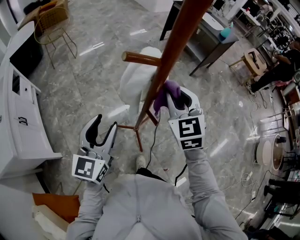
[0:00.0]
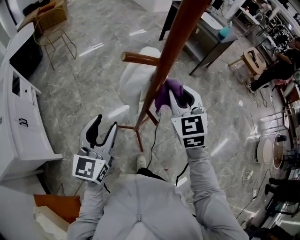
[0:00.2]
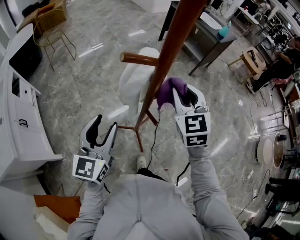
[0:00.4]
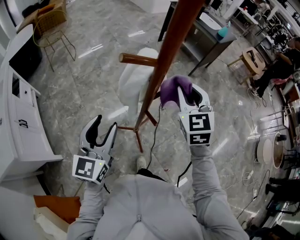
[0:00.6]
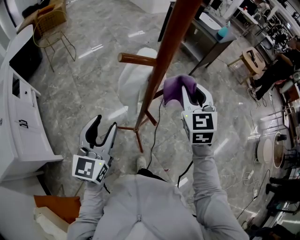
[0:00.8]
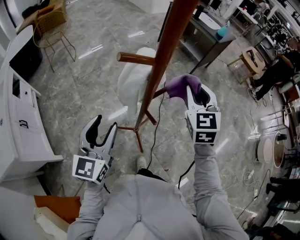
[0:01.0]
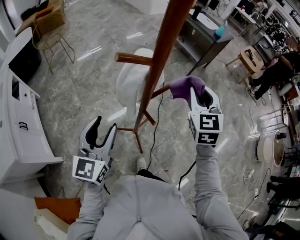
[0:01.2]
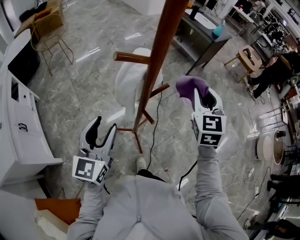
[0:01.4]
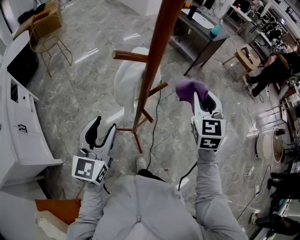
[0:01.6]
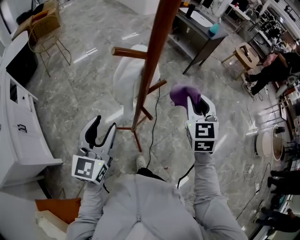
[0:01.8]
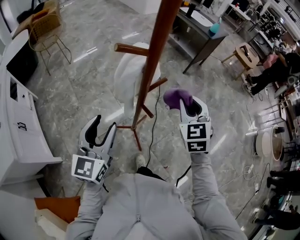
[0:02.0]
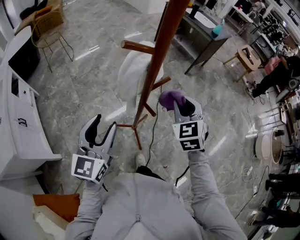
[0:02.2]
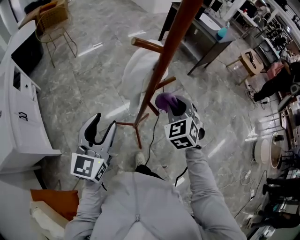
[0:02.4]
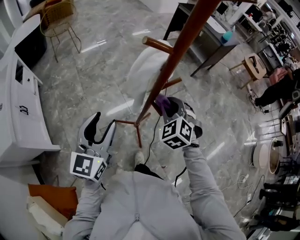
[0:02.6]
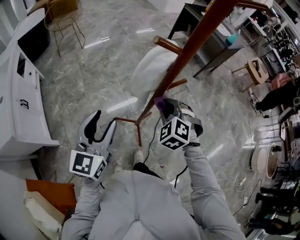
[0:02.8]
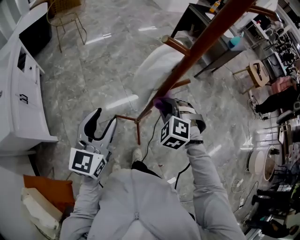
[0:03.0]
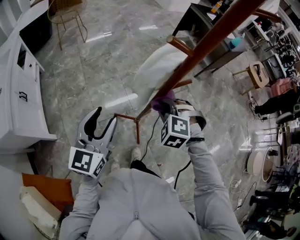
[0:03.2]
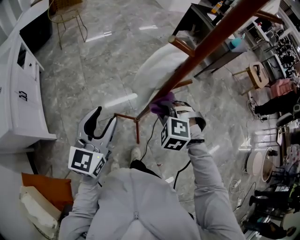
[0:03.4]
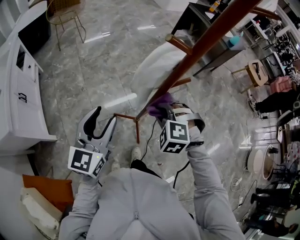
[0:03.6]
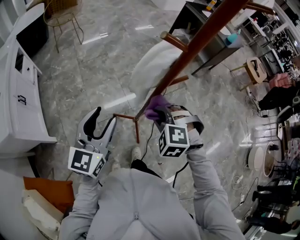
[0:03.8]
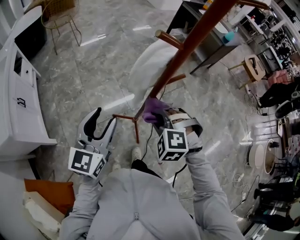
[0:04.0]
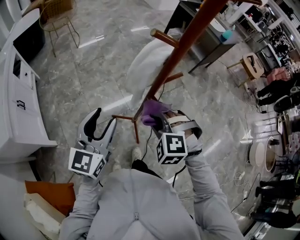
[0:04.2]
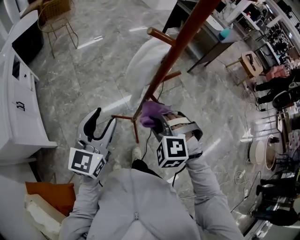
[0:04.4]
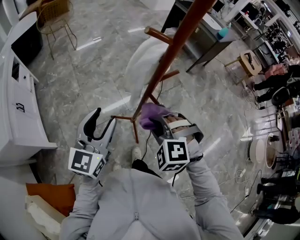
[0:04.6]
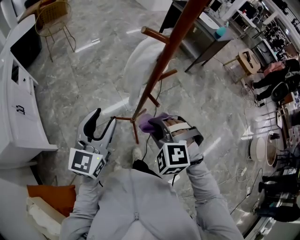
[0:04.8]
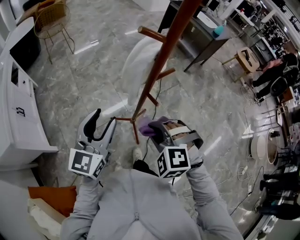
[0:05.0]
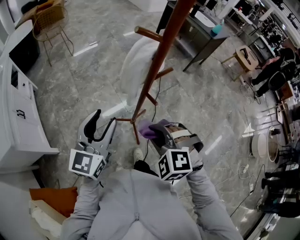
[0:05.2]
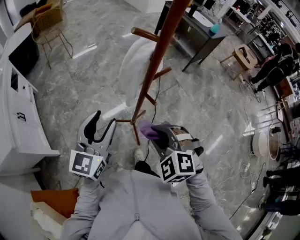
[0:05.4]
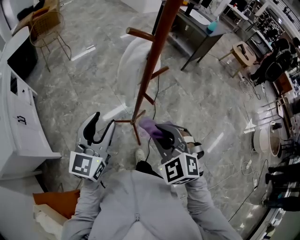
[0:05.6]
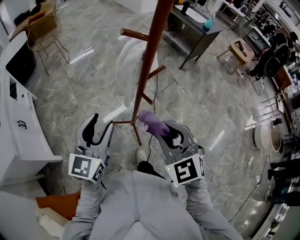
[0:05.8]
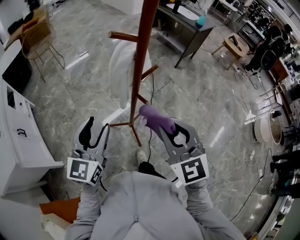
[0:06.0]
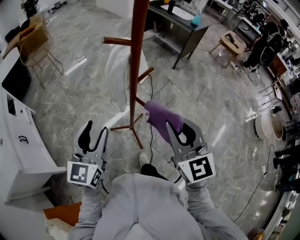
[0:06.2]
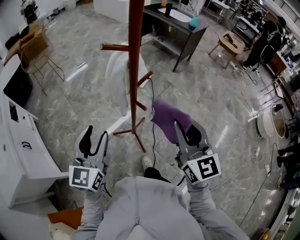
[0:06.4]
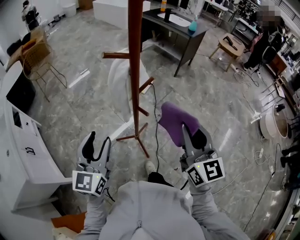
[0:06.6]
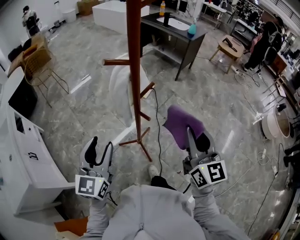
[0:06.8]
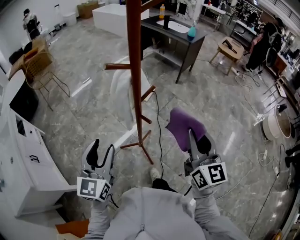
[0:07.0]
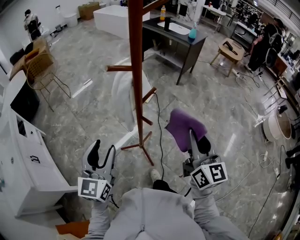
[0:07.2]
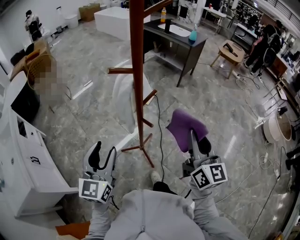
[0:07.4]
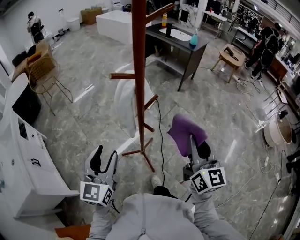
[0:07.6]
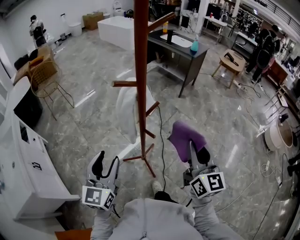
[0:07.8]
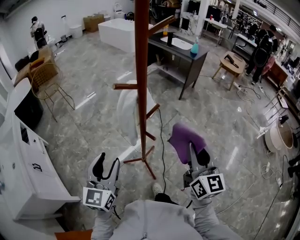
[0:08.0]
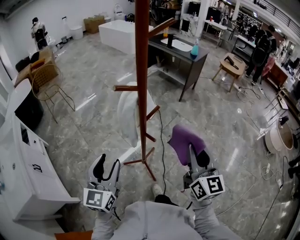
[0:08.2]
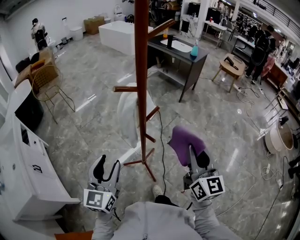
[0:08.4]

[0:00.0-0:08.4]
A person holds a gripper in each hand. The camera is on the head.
0:00.0 to 0:01.4: The right gripper moves to the right, about 10 cm.
0:01.4 to 0:02.8: The right gripper moves downward, to the left and backward, roughly 25 cm, and tips its fingers downward by some 30 degrees, while the left gripper moves some 5 cm.
0:02.8 to 0:04.2: The right gripper is displaced backward by approximately 10 cm, and changes its angle by some 20 degrees.
0:04.2 to 0:05.6: The right gripper goes some 10 cm backward and upward, and swivels approximately 30 degrees.
0:05.6 to 0:07.0: The right gripper moves to the right and upward, some 20 cm, and angles its fingers upward, by some 40 degrees.
0:07.0 to 0:08.4: The grippers make only small movements.

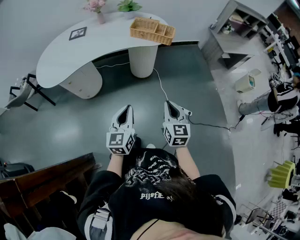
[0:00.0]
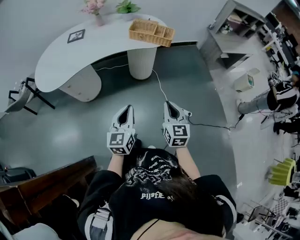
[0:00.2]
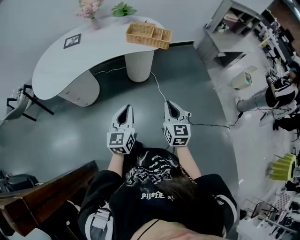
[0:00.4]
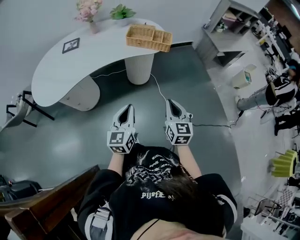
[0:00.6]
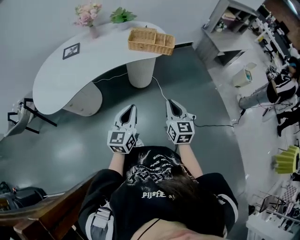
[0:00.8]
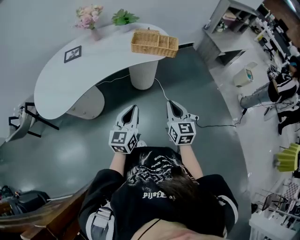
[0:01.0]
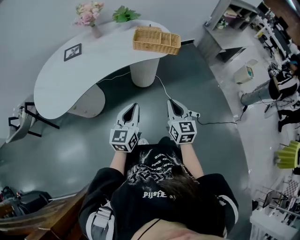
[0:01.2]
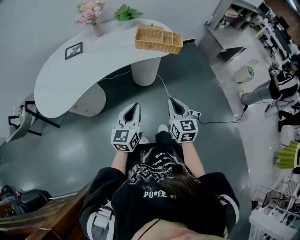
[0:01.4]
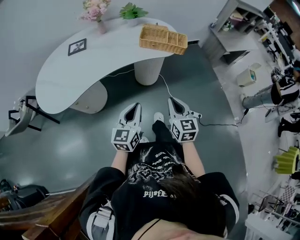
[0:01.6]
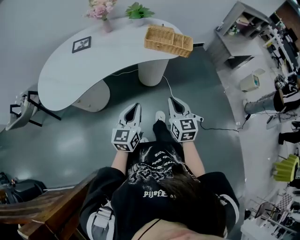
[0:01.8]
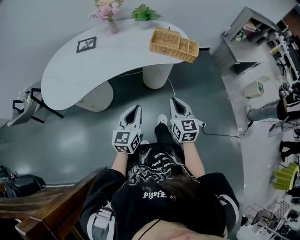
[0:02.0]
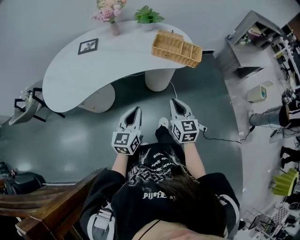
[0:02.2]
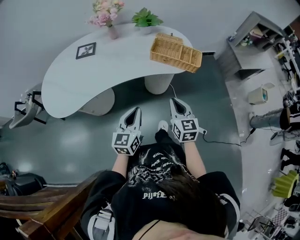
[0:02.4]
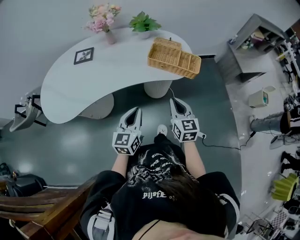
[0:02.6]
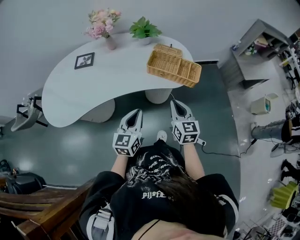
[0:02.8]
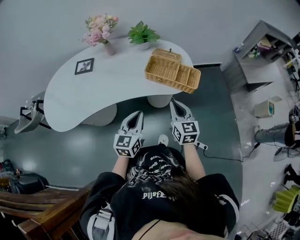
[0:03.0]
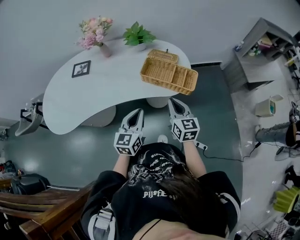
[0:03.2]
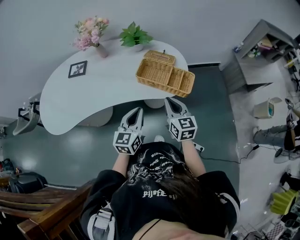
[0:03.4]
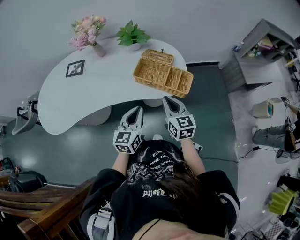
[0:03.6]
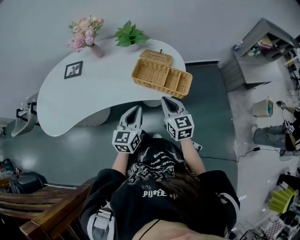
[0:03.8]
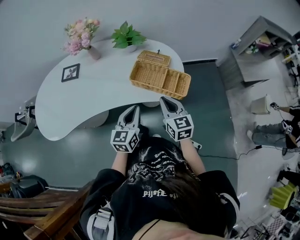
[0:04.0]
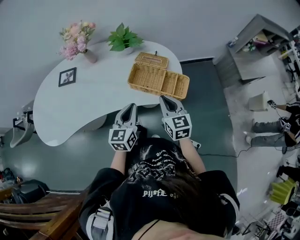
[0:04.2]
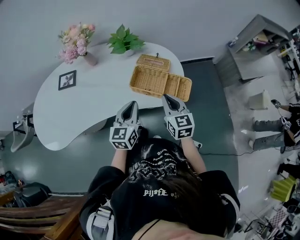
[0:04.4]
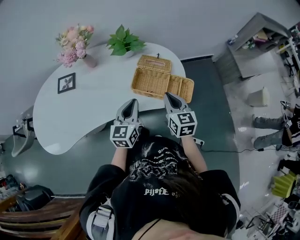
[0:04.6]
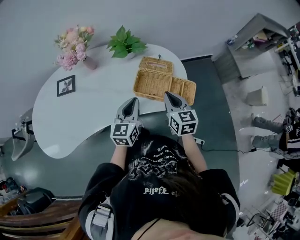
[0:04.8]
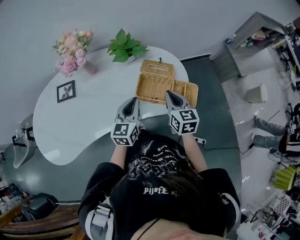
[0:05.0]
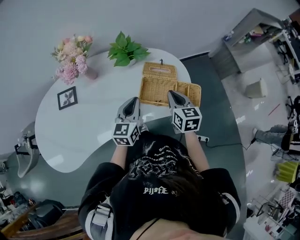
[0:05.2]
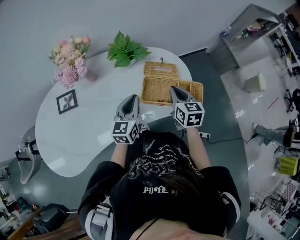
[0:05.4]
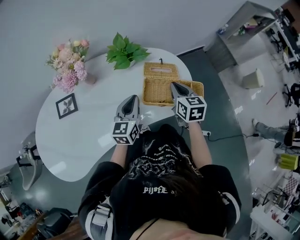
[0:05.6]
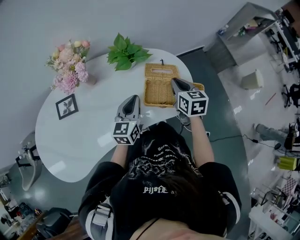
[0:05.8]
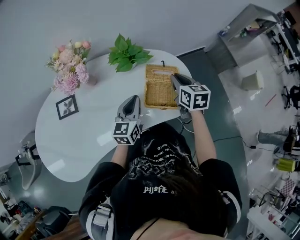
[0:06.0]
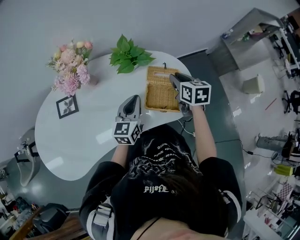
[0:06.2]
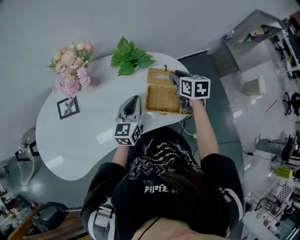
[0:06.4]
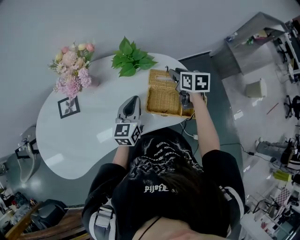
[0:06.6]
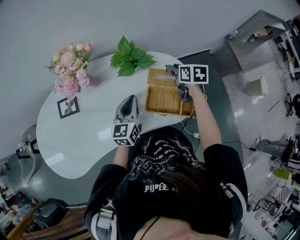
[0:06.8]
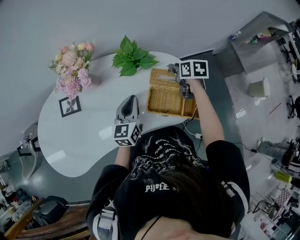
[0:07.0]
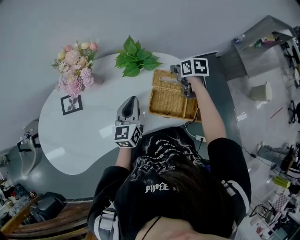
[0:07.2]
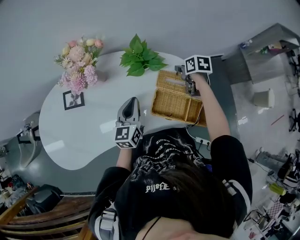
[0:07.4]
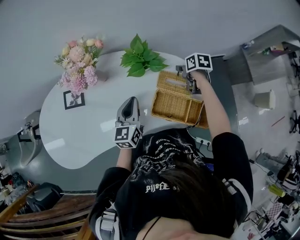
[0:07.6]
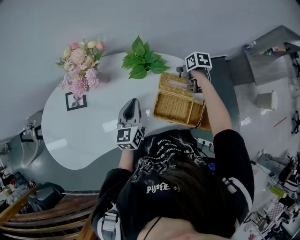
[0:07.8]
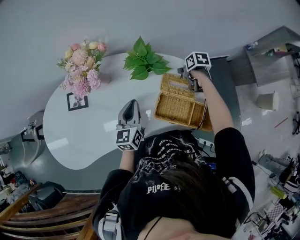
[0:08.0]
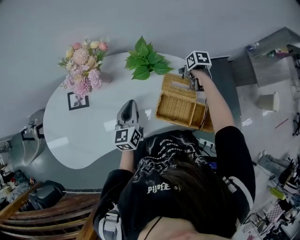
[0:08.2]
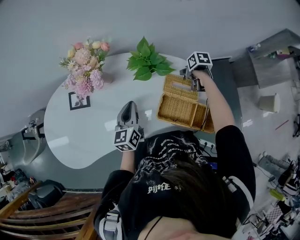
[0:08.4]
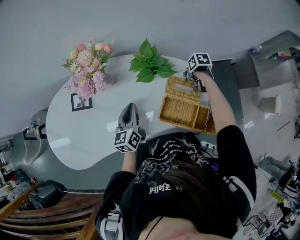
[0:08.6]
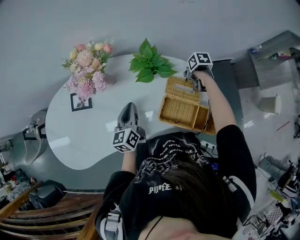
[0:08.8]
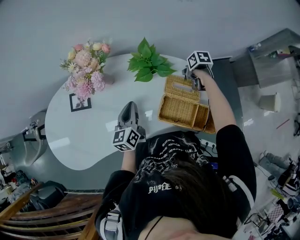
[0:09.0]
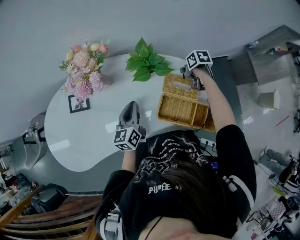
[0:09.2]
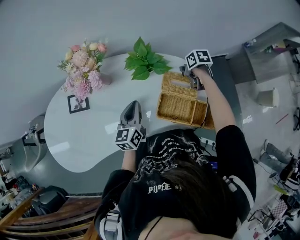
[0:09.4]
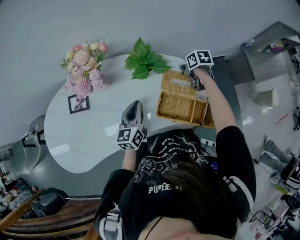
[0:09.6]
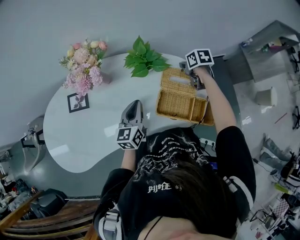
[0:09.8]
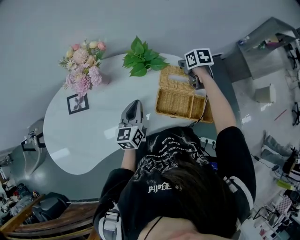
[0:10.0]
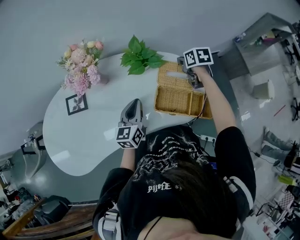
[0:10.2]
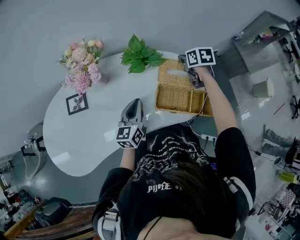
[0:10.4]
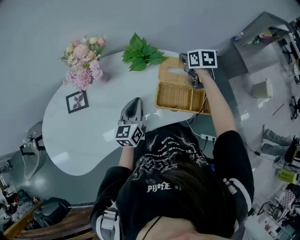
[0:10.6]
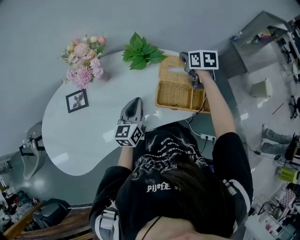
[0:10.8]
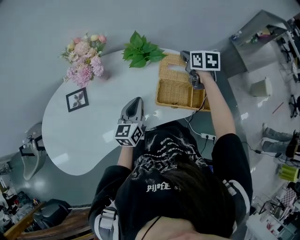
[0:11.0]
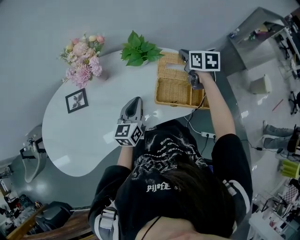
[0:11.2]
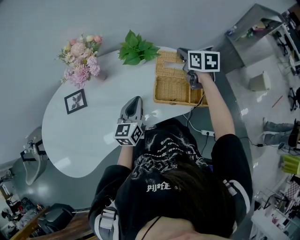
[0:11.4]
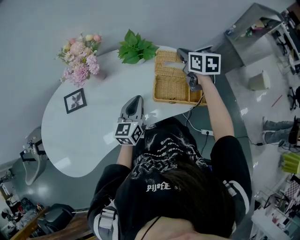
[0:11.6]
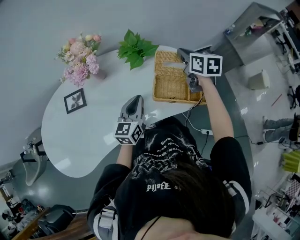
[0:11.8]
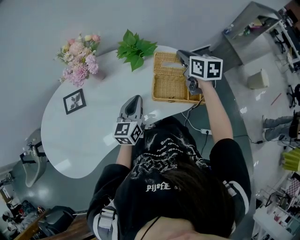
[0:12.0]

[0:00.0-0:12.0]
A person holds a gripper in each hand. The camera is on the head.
0:00.0 to 0:01.6: The right gripper shifts about 20 cm to the left and forward; the left gripper goes some 20 cm forward and to the left.
0:01.6 to 0:03.0: Both grippers move forward, approximately 25 cm.
0:03.0 to 0:04.4: Both grippers travel together forward, roughly 15 cm.
0:04.4 to 0:06.0: The left gripper heads forward and to the left, covering about 15 cm, while the right gripper is displaced forward by roughly 20 cm, and changes its angle by some 20 degrees.
0:06.0 to 0:07.6: The left gripper moves some 5 cm; the right gripper moves forward and downward, roughly 20 cm, and rotates roughly 30 degrees.
0:07.6 to 0:09.0: The right gripper closes its fingers. Meanwhile the left gripper changes place by roughly 5 cm.
0:09.0 to 0:10.4: The right gripper is displaced upward by roughly 10 cm, and swivels about 30 degrees. Meanwhile the left gripper shifts by some 5 cm.
0:10.4 to 0:12.0: The right gripper moves upward and backward, some 15 cm, and rotates about 20 degrees.

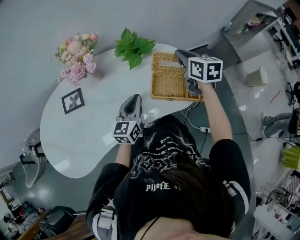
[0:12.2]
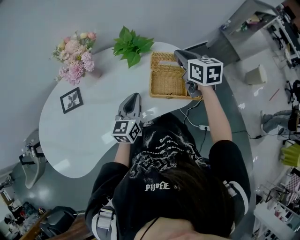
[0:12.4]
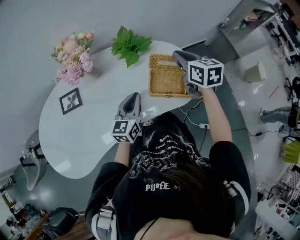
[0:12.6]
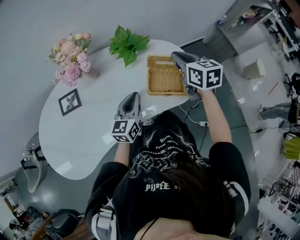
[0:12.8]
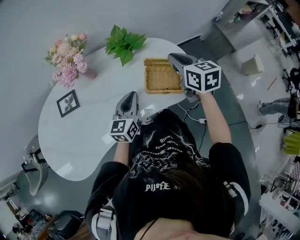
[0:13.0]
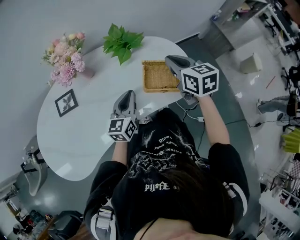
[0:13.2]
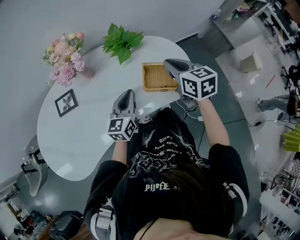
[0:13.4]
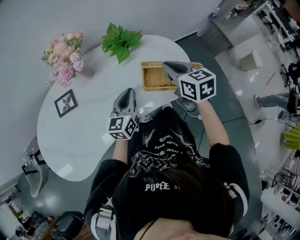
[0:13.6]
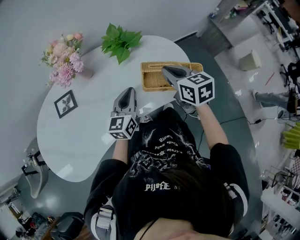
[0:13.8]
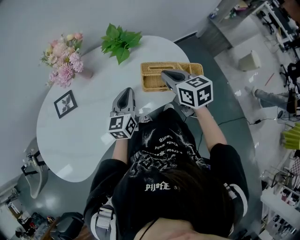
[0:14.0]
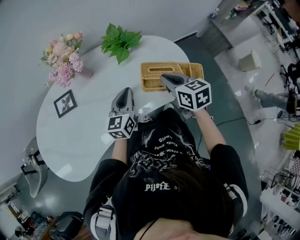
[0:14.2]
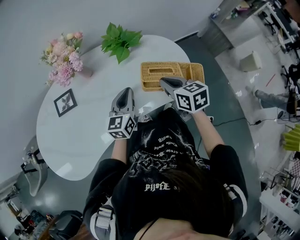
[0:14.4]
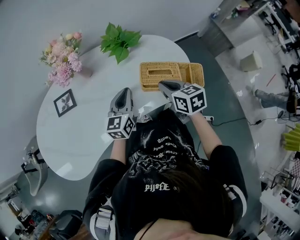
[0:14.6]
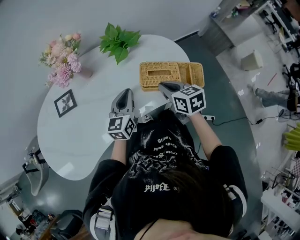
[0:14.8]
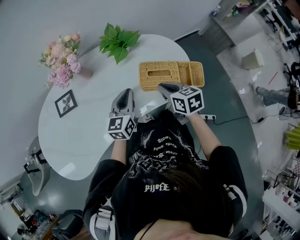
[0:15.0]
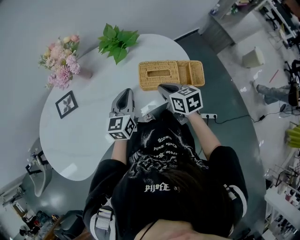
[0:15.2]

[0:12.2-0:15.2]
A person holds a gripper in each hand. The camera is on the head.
0:12.2 to 0:13.8: The right gripper travels backward by about 10 cm.
0:13.8 to 0:15.2: The right gripper heads downward and backward, covering some 10 cm.
